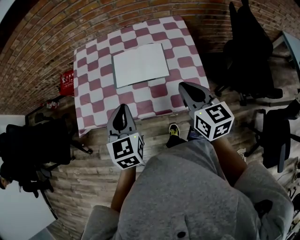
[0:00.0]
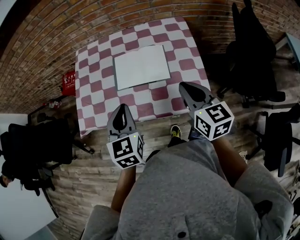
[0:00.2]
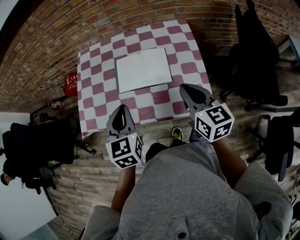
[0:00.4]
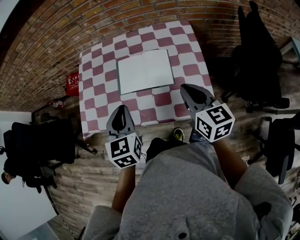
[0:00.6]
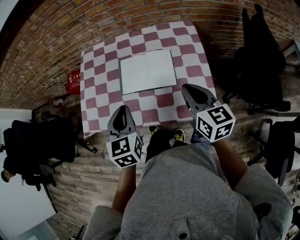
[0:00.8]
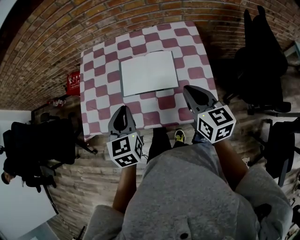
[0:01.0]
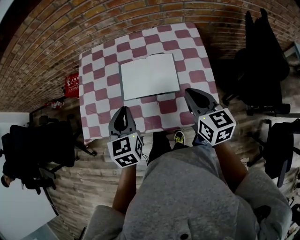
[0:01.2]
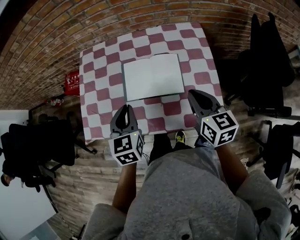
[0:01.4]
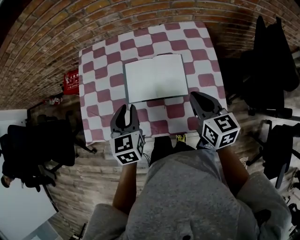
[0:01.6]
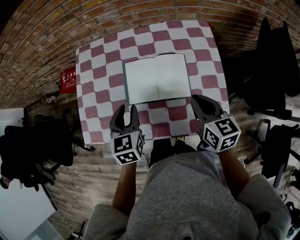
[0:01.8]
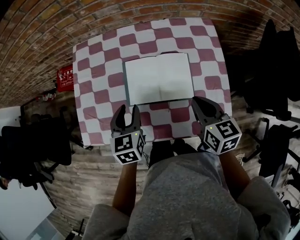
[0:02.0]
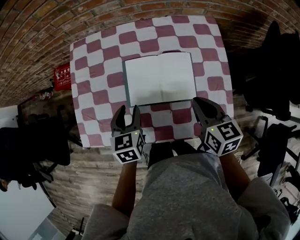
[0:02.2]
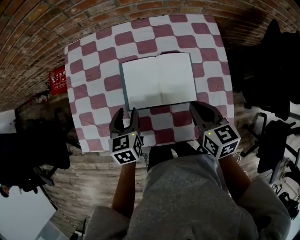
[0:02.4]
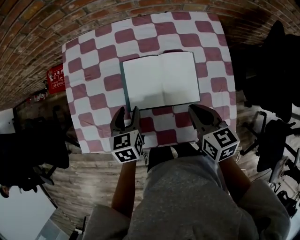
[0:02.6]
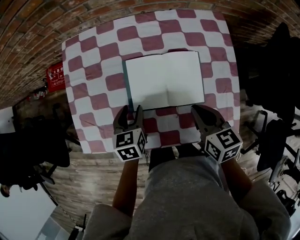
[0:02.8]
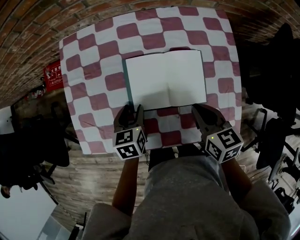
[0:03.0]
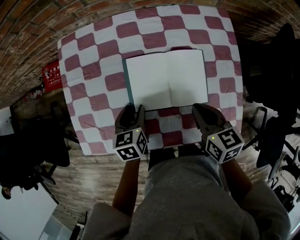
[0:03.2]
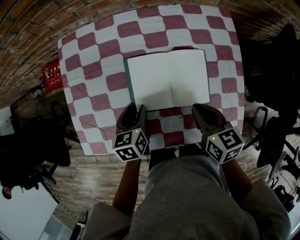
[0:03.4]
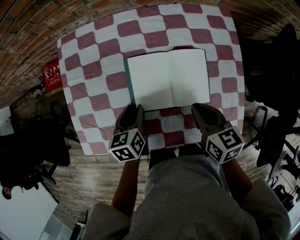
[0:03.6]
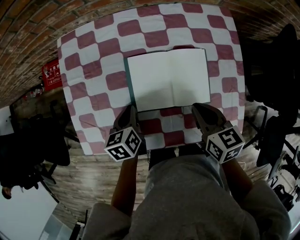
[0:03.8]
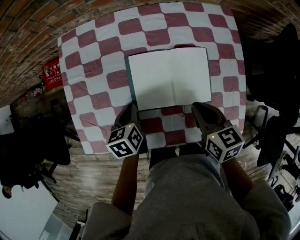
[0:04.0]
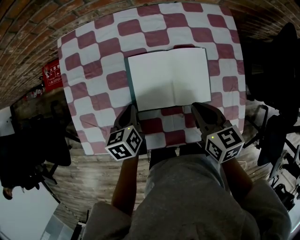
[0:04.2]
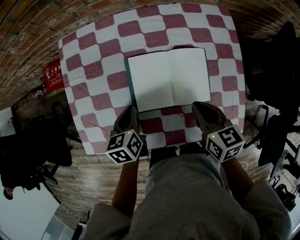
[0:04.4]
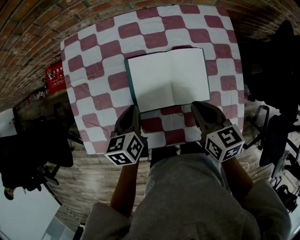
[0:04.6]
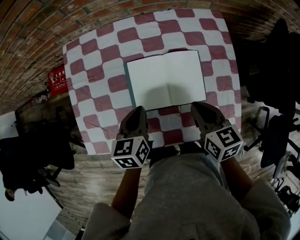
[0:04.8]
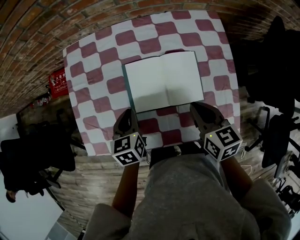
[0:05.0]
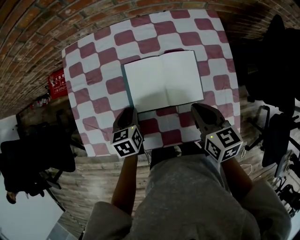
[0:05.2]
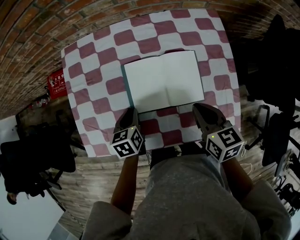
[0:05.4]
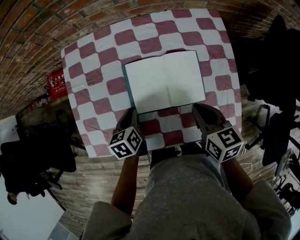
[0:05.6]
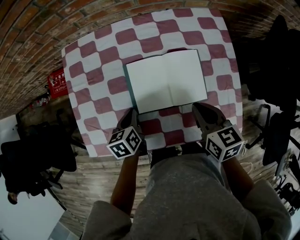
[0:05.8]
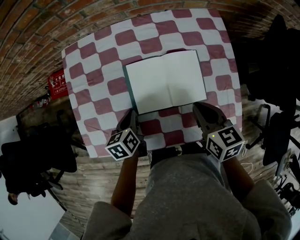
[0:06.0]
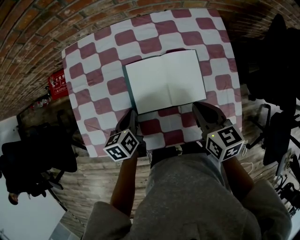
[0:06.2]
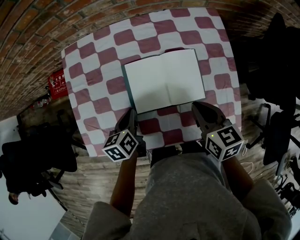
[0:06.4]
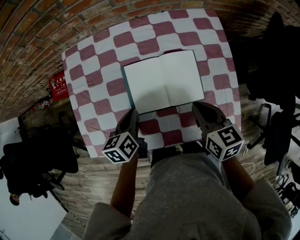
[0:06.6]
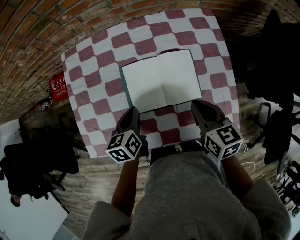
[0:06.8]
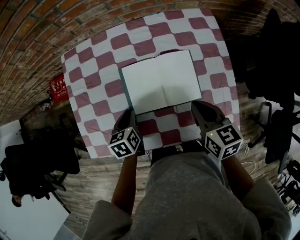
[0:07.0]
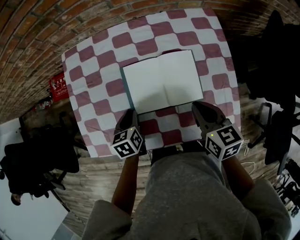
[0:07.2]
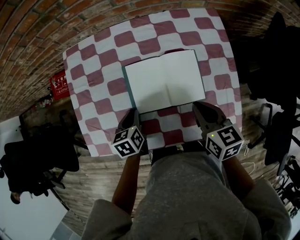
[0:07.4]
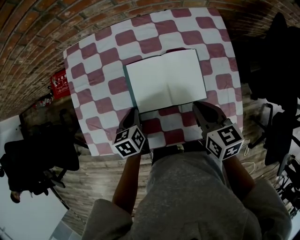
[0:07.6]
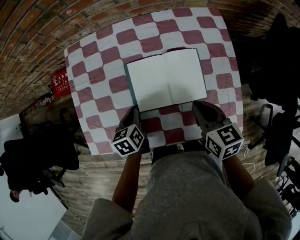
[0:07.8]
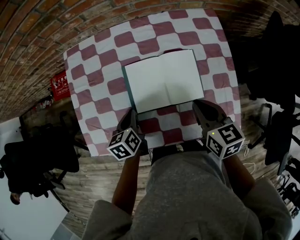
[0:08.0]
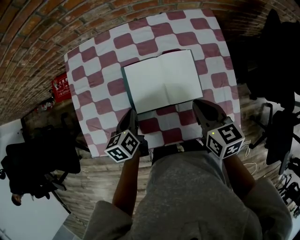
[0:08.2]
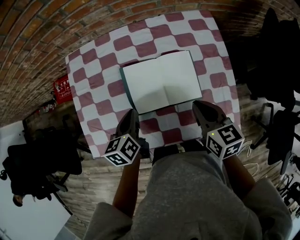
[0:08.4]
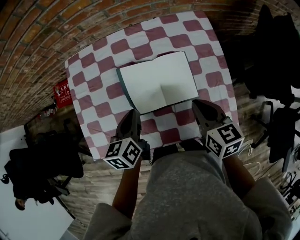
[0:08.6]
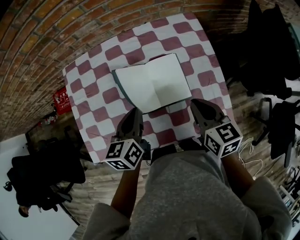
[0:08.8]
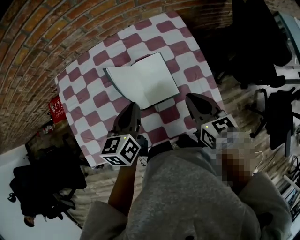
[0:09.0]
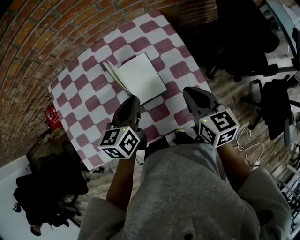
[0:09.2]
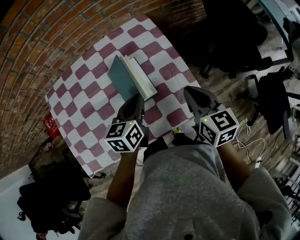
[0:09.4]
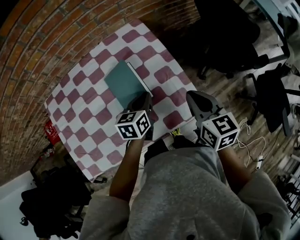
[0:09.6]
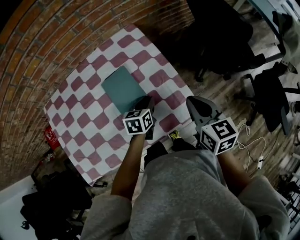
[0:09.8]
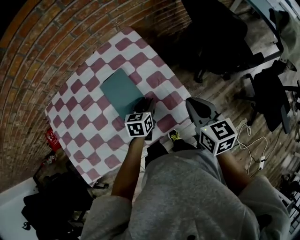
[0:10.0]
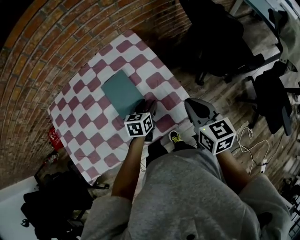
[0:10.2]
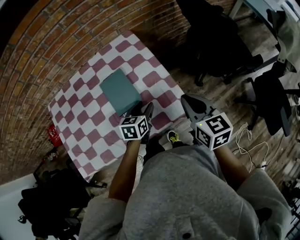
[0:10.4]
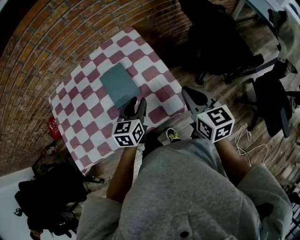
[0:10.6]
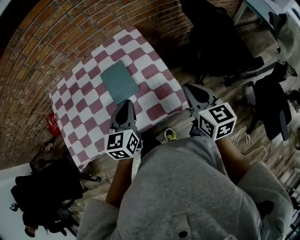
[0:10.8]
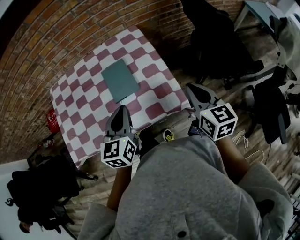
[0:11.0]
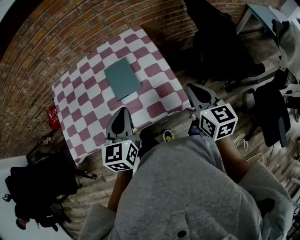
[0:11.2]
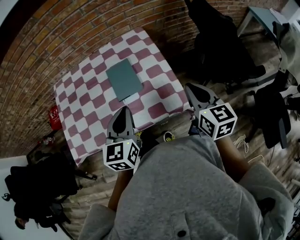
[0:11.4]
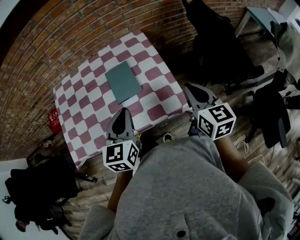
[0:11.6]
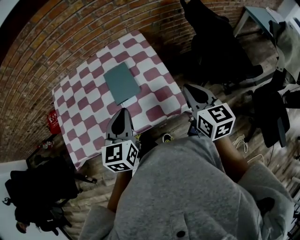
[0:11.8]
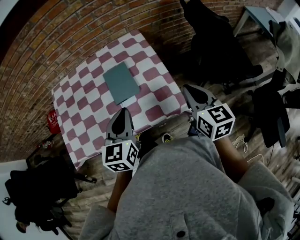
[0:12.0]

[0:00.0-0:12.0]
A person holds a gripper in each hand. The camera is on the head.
0:00.0 to 0:01.6: Both grippers travel together forward and downward, about 15 cm.
0:01.6 to 0:03.0: The right gripper heads downward and to the left, covering about 10 cm. Meanwhile the left gripper is displaced downward by about 15 cm, swivels approximately 20 degrees, and opens.
0:03.0 to 0:04.4: The left gripper closes.
0:04.4 to 0:06.0: The left gripper travels upward and back again, some 5 cm each way, and opens, then closes once more.
0:06.0 to 0:07.6: There are only small adjustments of the grippers.
0:07.6 to 0:09.0: The right gripper heads to the right and upward, covering about 10 cm. The left gripper travels upward and to the right by some 20 cm, and rotates about 30 degrees.
0:09.0 to 0:10.4: The right gripper moves to the right, approximately 15 cm; the left gripper travels to the right and downward by about 25 cm, changes its angle by roughly 20 degrees, and opens up.
0:10.4 to 0:12.0: The right gripper changes place by roughly 5 cm, while the left gripper moves upward and backward, some 20 cm, turns by approximately 30 degrees, and closes up.

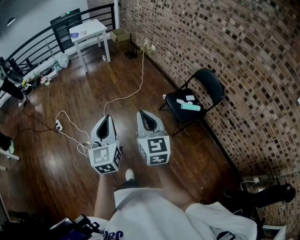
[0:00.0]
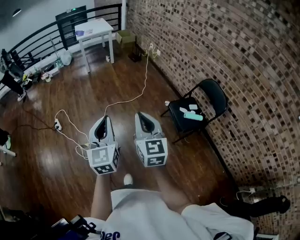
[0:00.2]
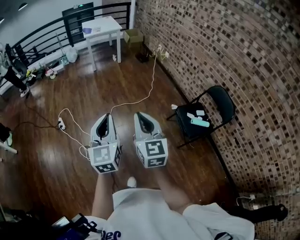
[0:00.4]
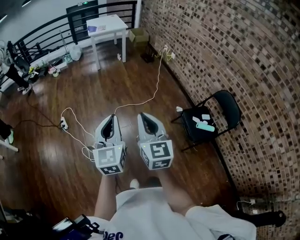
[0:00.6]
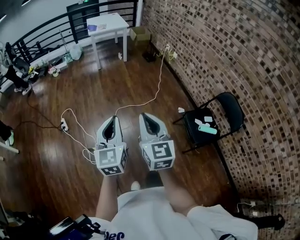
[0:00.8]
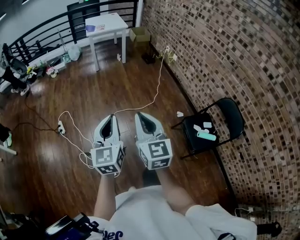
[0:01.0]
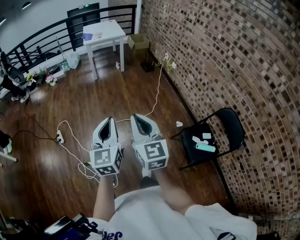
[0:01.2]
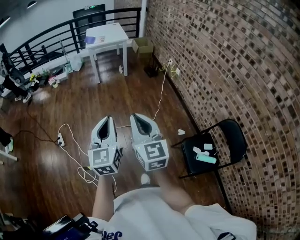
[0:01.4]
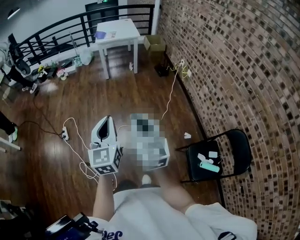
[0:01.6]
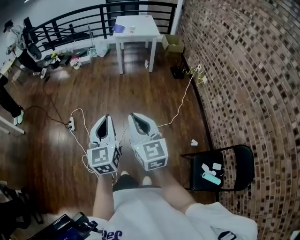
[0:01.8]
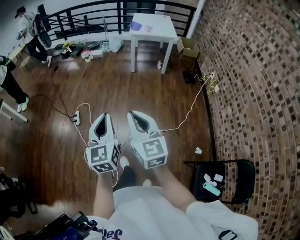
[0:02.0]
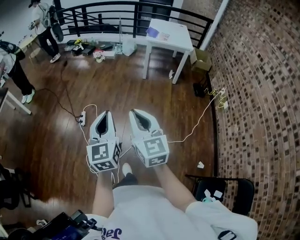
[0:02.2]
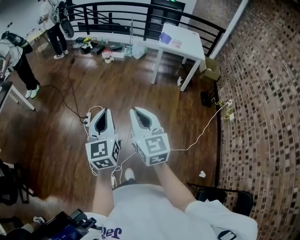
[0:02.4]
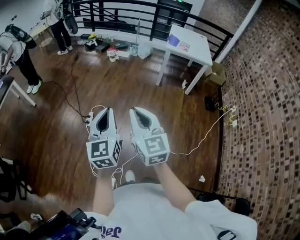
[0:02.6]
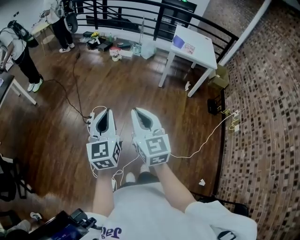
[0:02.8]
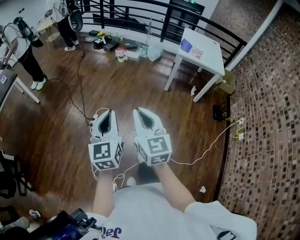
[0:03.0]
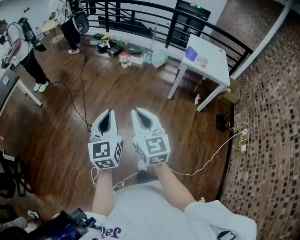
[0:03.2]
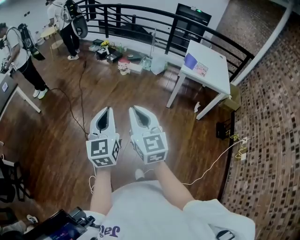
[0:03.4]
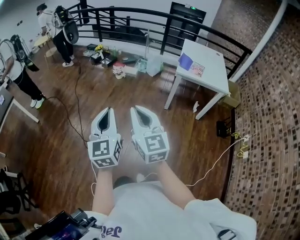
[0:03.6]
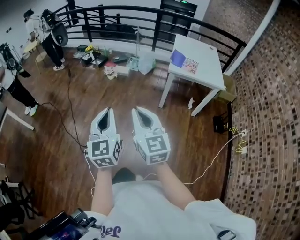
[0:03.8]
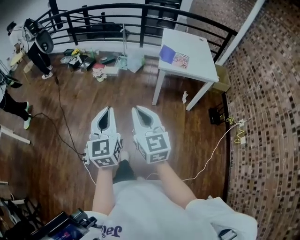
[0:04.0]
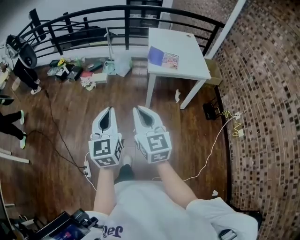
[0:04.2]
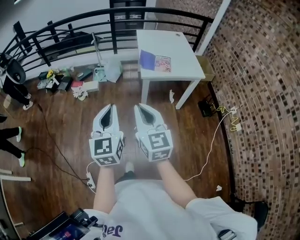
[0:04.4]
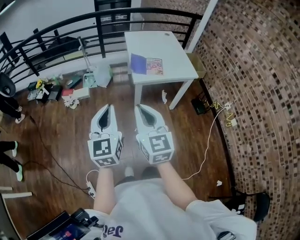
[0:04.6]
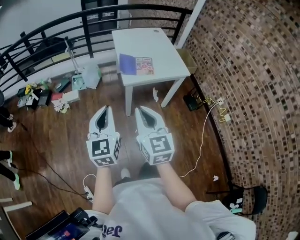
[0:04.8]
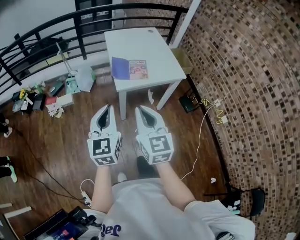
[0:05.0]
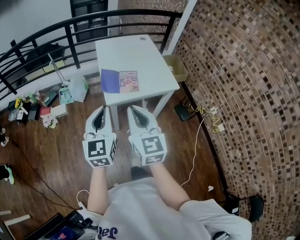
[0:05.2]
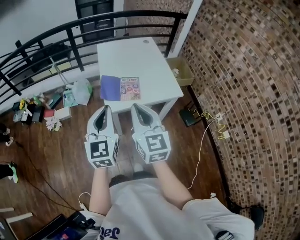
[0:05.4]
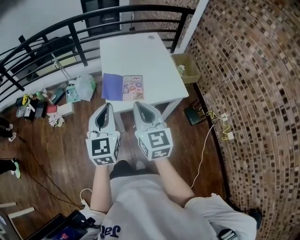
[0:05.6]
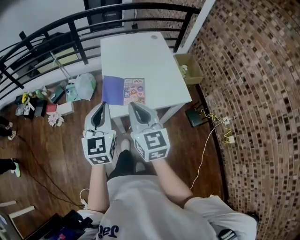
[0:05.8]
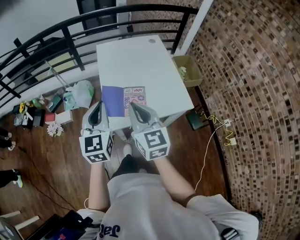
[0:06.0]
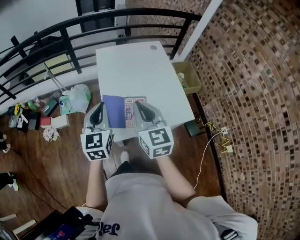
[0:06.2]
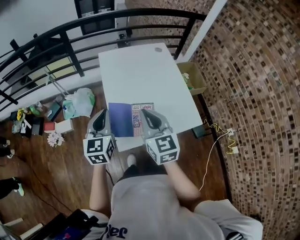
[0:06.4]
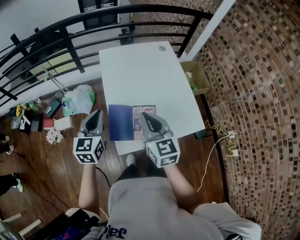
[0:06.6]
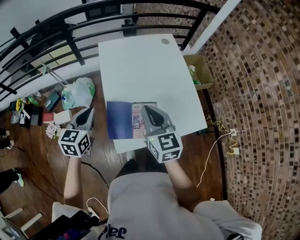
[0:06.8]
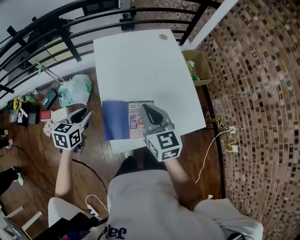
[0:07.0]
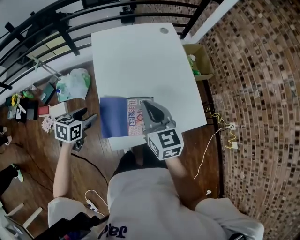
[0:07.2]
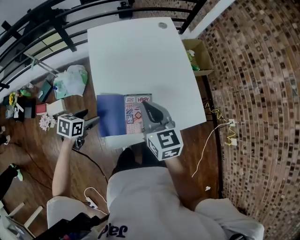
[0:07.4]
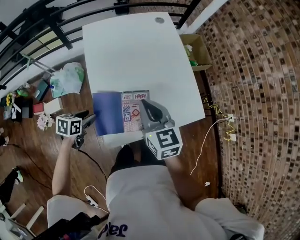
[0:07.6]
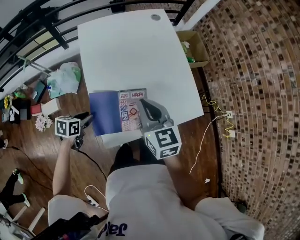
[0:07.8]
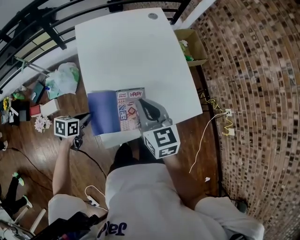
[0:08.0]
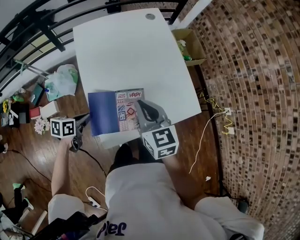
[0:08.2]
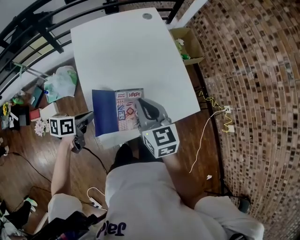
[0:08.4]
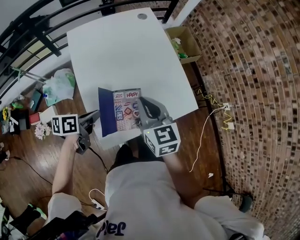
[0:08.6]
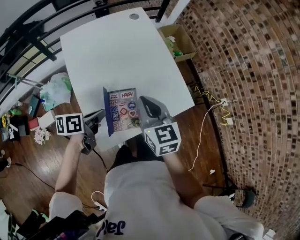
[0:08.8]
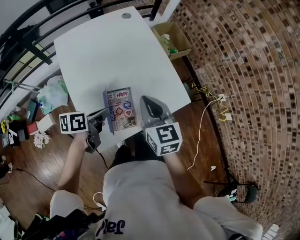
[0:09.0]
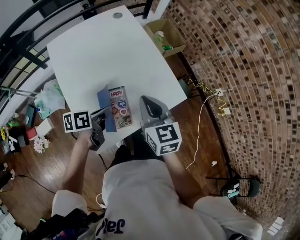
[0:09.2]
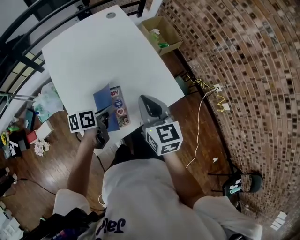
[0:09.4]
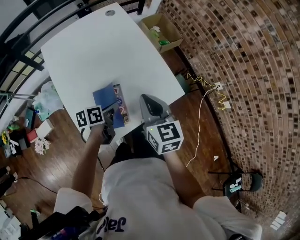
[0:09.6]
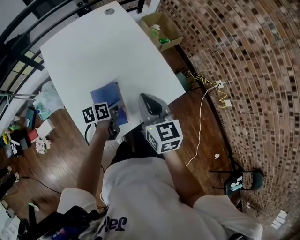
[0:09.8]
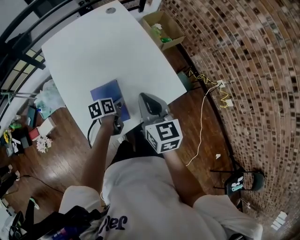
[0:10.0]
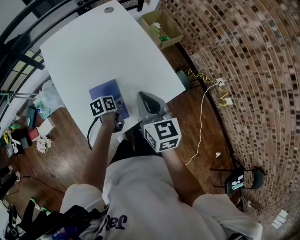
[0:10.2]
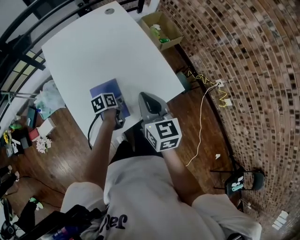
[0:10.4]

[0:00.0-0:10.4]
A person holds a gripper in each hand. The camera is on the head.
0:00.0 to 0:01.4: The pair of grippers is taken forward, some 40 cm.
0:01.4 to 0:03.0: Both grippers are carried about 50 cm. The right gripper changes its angle by roughly 40 degrees, while the left gripper rotates some 40 degrees.
0:03.0 to 0:04.4: The pair of grippers is taken about 50 cm. The left gripper rotates some 30 degrees, while the right gripper changes its angle by some 30 degrees.
0:04.4 to 0:06.0: The pair of grippers is taken forward, approximately 50 cm.
0:06.0 to 0:07.4: The left gripper heads downward and forward, covering approximately 35 cm, points its fingers about 40 degrees further downward, and opens up; the right gripper goes some 25 cm forward and downward.
0:07.4 to 0:09.0: The left gripper shifts approximately 15 cm to the right, rotates roughly 30 degrees, and closes, while the right gripper heads to the right, covering about 10 cm.
0:09.0 to 0:10.4: The left gripper goes approximately 20 cm downward, to the right and forward. The right gripper heads to the right, covering approximately 5 cm.

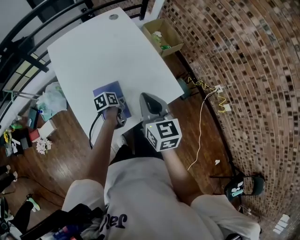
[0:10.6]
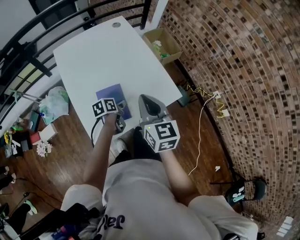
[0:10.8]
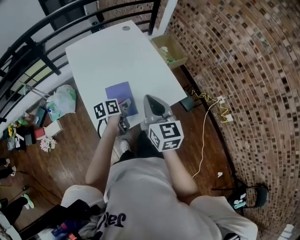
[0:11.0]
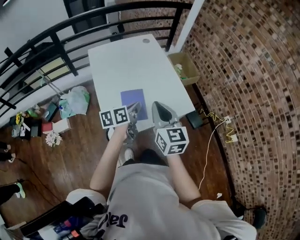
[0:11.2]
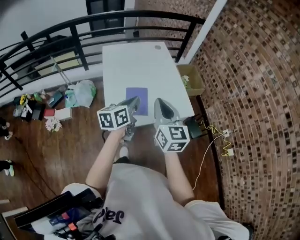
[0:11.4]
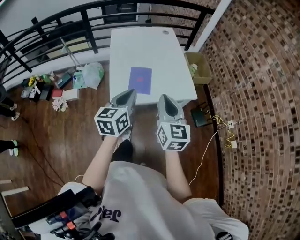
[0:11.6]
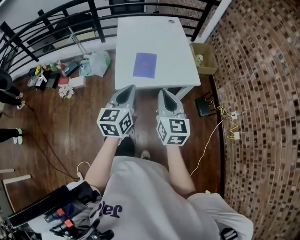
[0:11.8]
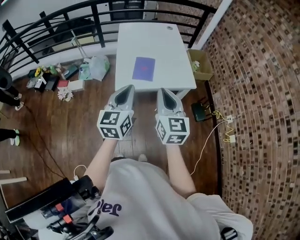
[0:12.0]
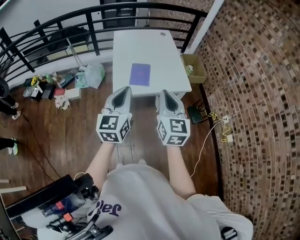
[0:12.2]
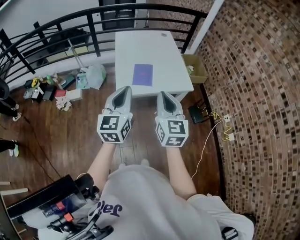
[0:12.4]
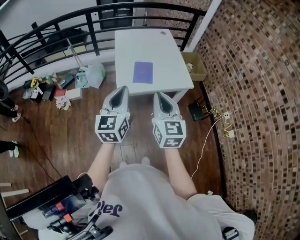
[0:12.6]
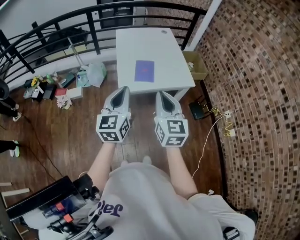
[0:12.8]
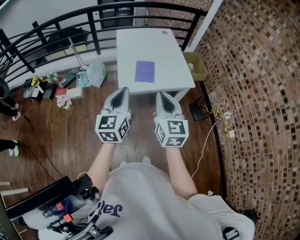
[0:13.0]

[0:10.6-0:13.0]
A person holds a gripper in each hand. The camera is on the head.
0:10.6 to 0:11.8: The right gripper moves about 30 cm, while the left gripper heads upward, covering roughly 35 cm, and points its fingers about 30 degrees further upward.
0:11.8 to 0:13.0: The left gripper heads backward, to the left and upward, covering roughly 10 cm, while the right gripper shifts approximately 10 cm backward and upward.
